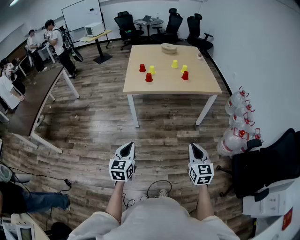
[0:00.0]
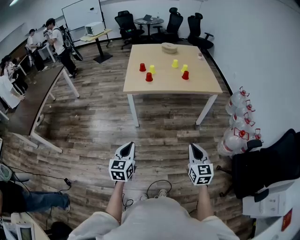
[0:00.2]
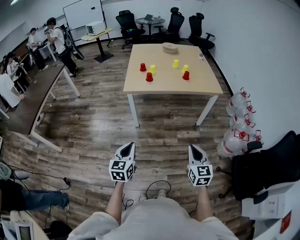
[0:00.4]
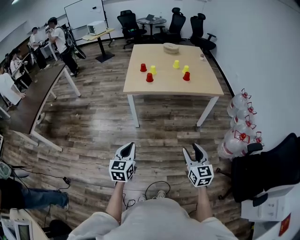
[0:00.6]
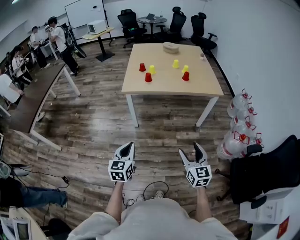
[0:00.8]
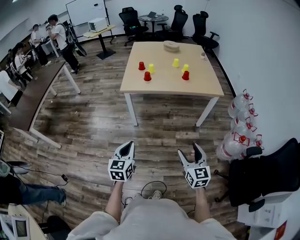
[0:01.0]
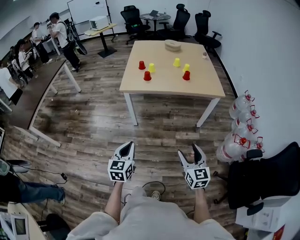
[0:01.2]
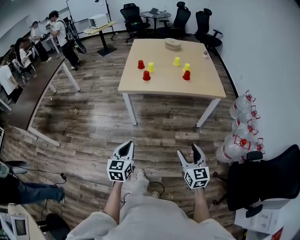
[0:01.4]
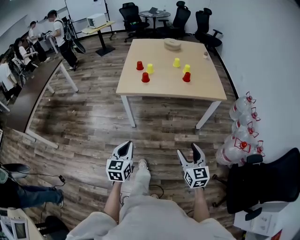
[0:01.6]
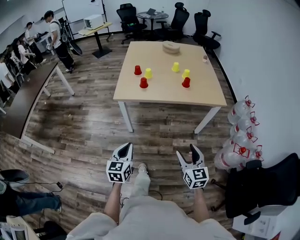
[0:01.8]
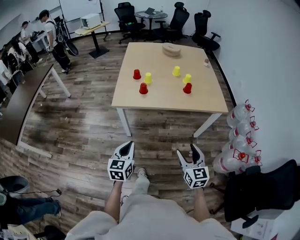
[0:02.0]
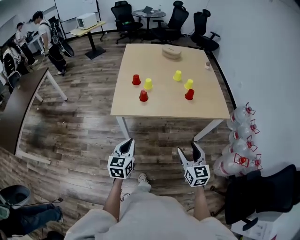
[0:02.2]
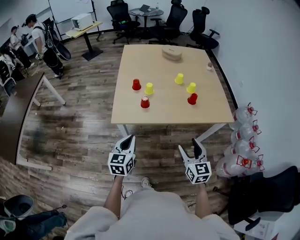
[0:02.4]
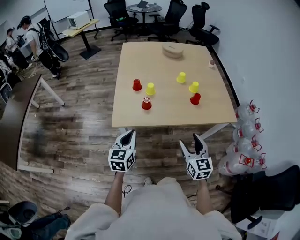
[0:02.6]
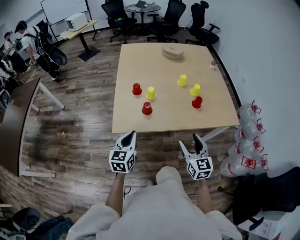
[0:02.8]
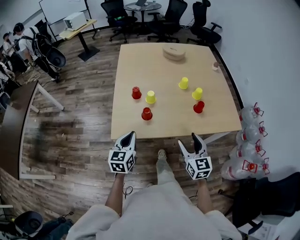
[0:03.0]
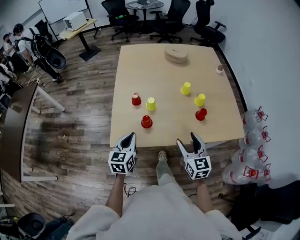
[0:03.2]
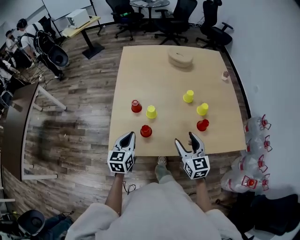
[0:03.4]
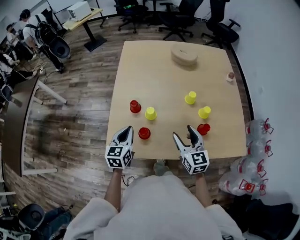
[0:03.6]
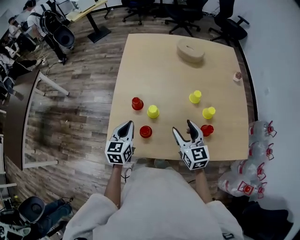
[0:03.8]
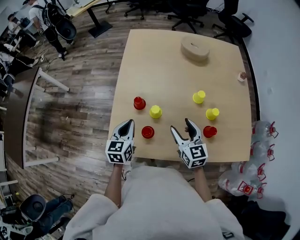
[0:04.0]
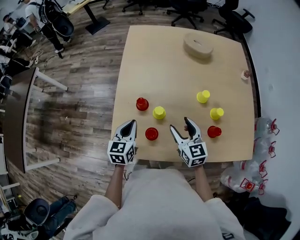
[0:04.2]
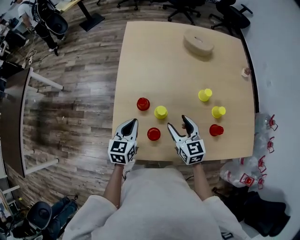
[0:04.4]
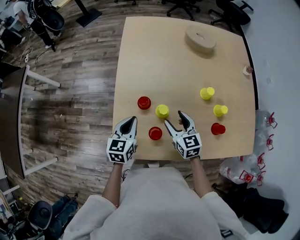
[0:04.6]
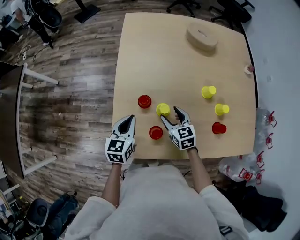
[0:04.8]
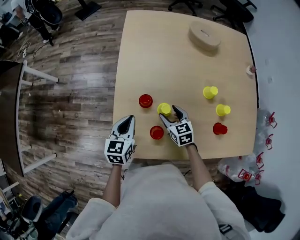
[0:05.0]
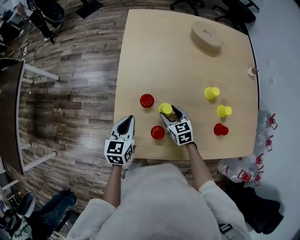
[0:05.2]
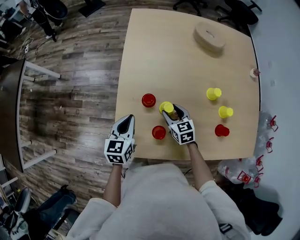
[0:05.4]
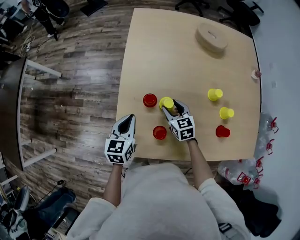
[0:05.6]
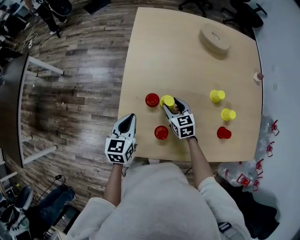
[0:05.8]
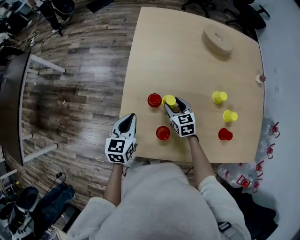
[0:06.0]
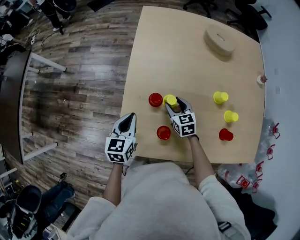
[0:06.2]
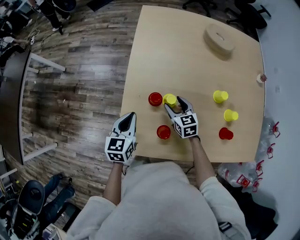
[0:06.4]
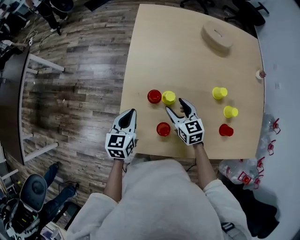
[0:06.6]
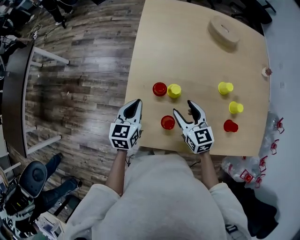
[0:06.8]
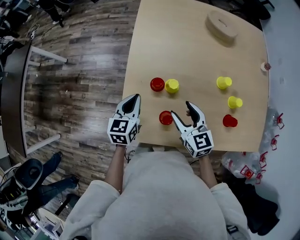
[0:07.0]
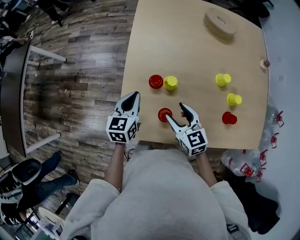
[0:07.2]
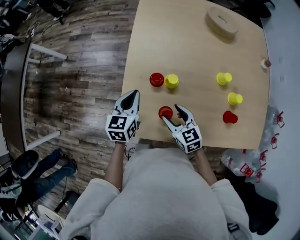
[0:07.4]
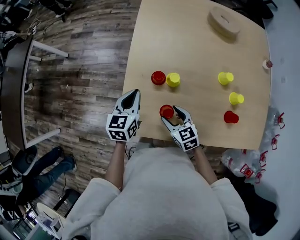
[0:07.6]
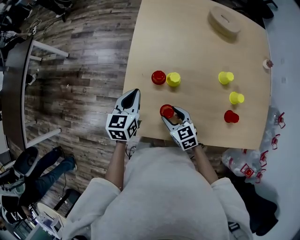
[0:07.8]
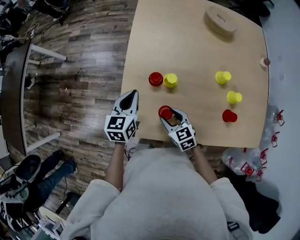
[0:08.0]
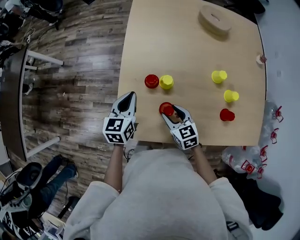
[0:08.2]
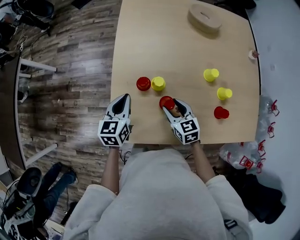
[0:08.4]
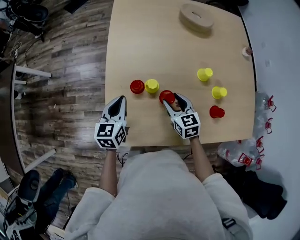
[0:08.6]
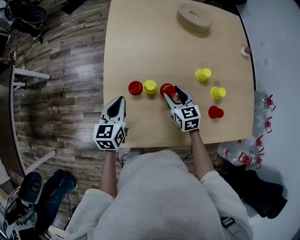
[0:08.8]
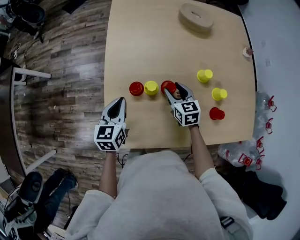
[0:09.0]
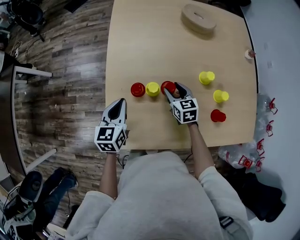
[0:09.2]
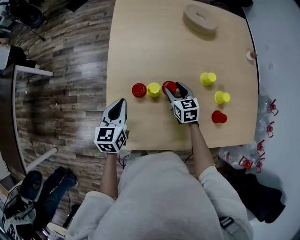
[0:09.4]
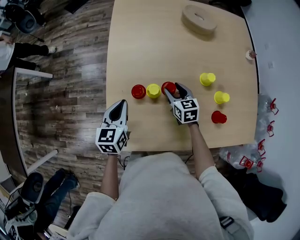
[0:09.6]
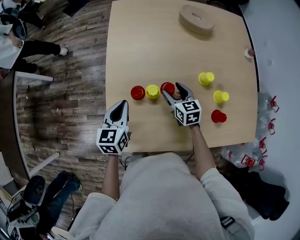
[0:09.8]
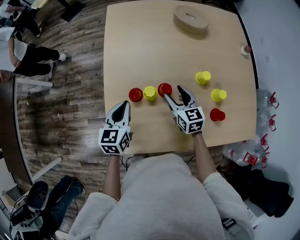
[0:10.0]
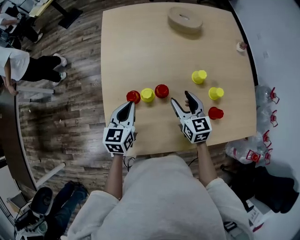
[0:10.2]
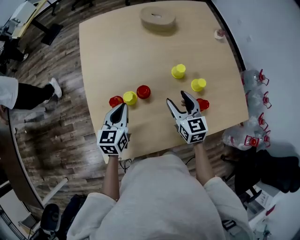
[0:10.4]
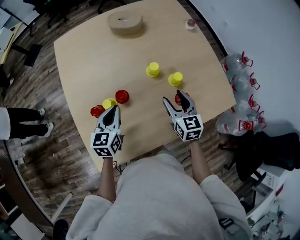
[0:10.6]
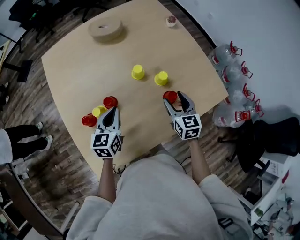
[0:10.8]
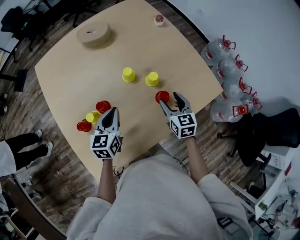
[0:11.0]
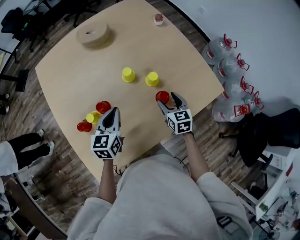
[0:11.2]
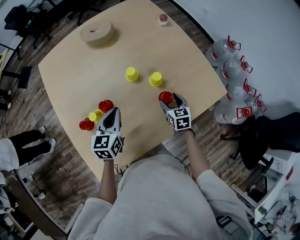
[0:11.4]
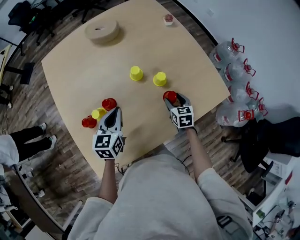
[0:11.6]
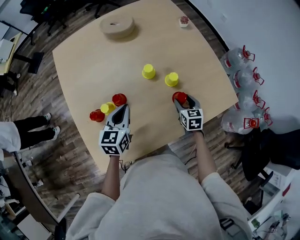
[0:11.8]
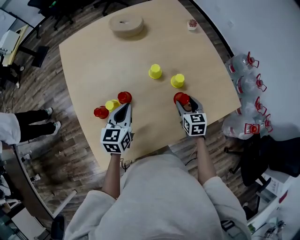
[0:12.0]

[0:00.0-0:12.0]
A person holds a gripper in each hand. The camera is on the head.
0:00.0 to 0:01.6: The left gripper travels forward and to the right by roughly 10 cm; the right gripper is displaced forward by some 10 cm, and opens up.
0:01.6 to 0:03.0: The two grippers travel together, forward, about 40 cm.
0:03.0 to 0:04.4: The two grippers go about 25 cm forward.
0:04.4 to 0:06.0: The right gripper travels downward, forward and to the left by about 15 cm; the left gripper goes approximately 5 cm to the left.
0:06.0 to 0:07.6: The right gripper moves backward, some 15 cm.
0:07.6 to 0:09.0: The right gripper is displaced forward and to the right by roughly 20 cm, and turns by some 20 degrees.
0:09.0 to 0:10.4: The right gripper is displaced to the right, upward and backward by roughly 15 cm. Meanwhile the left gripper goes roughly 10 cm to the right.
0:10.4 to 0:12.0: The left gripper goes some 10 cm to the right. Meanwhile the right gripper goes about 20 cm to the right and downward, and changes its angle by some 20 degrees.

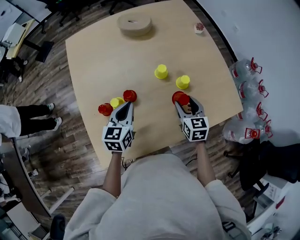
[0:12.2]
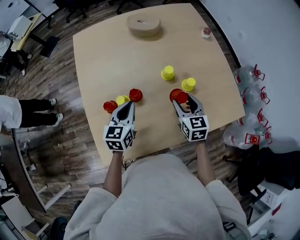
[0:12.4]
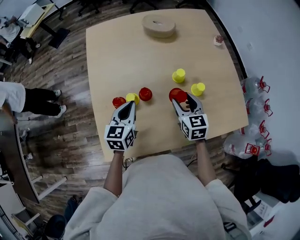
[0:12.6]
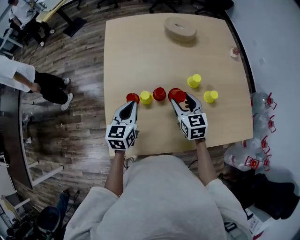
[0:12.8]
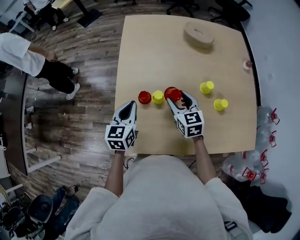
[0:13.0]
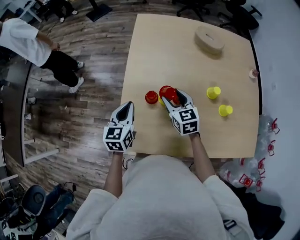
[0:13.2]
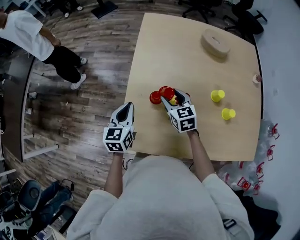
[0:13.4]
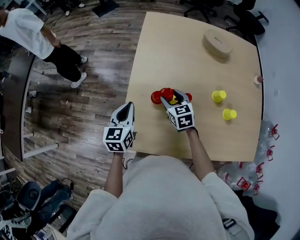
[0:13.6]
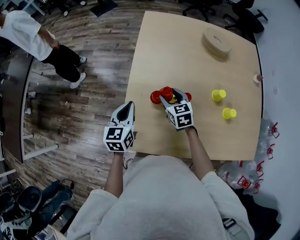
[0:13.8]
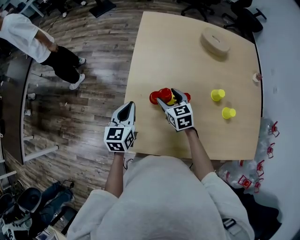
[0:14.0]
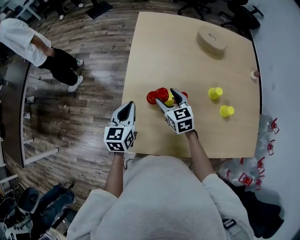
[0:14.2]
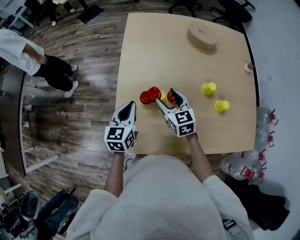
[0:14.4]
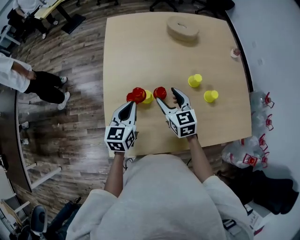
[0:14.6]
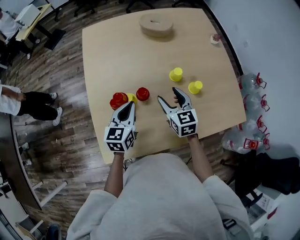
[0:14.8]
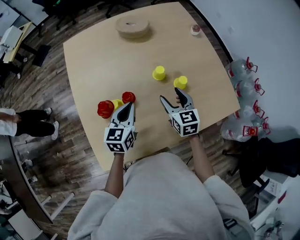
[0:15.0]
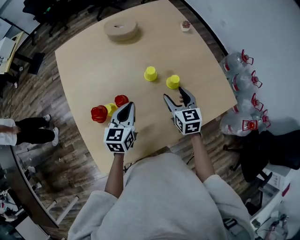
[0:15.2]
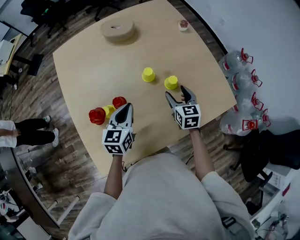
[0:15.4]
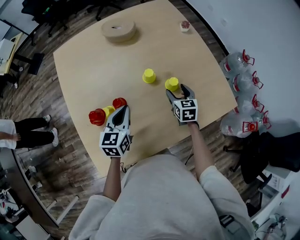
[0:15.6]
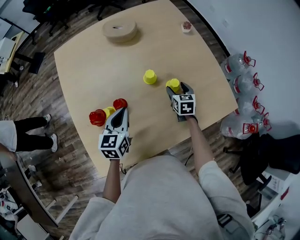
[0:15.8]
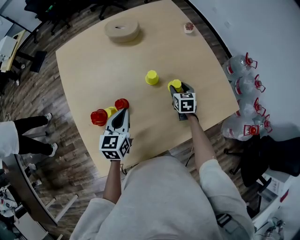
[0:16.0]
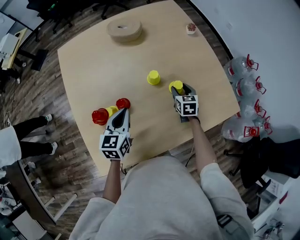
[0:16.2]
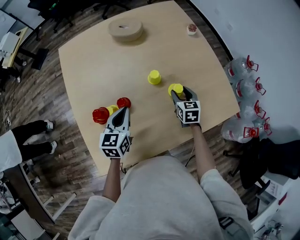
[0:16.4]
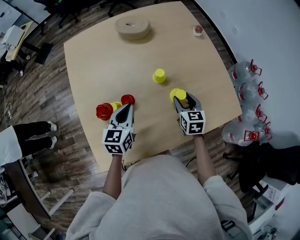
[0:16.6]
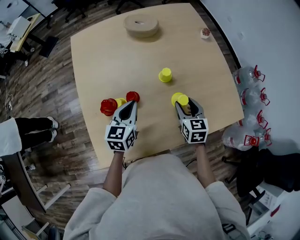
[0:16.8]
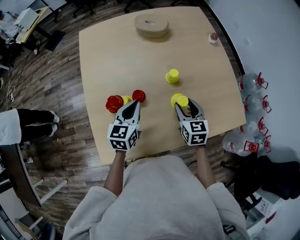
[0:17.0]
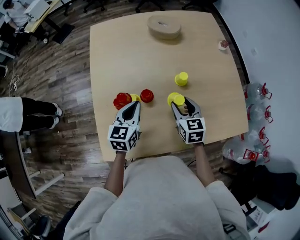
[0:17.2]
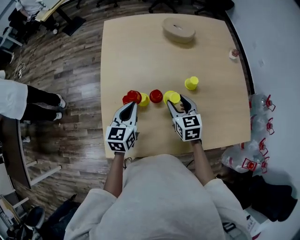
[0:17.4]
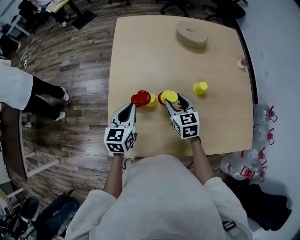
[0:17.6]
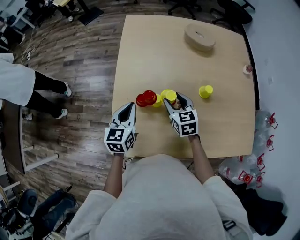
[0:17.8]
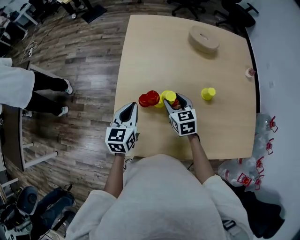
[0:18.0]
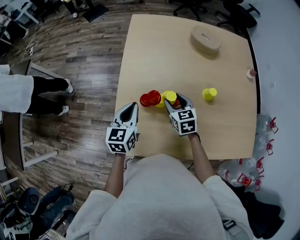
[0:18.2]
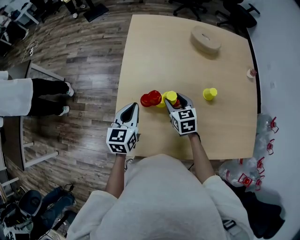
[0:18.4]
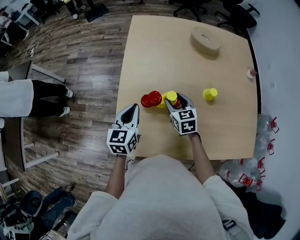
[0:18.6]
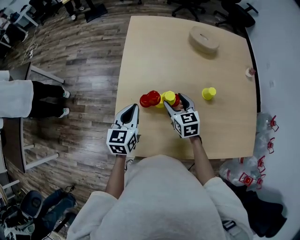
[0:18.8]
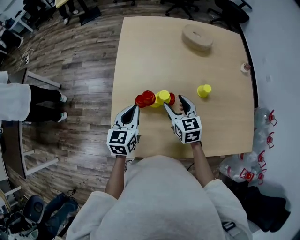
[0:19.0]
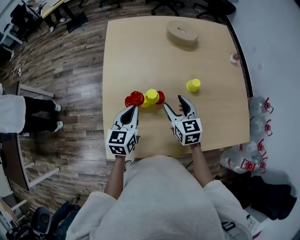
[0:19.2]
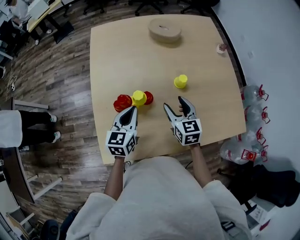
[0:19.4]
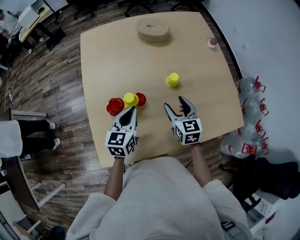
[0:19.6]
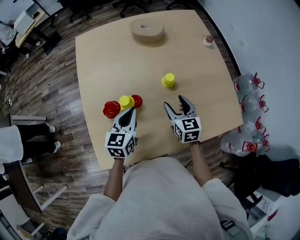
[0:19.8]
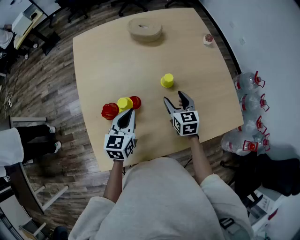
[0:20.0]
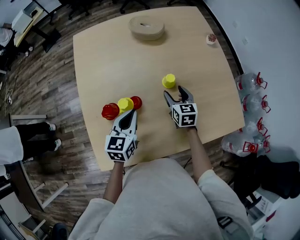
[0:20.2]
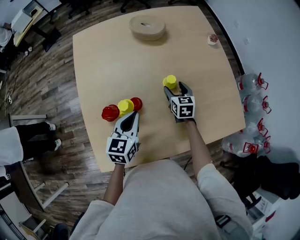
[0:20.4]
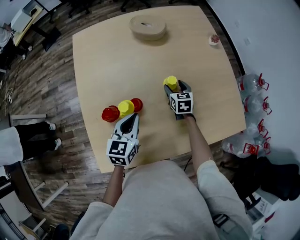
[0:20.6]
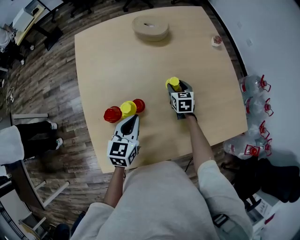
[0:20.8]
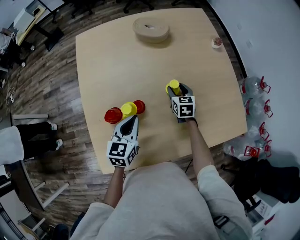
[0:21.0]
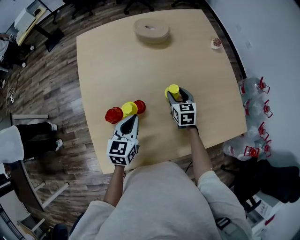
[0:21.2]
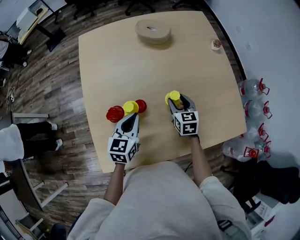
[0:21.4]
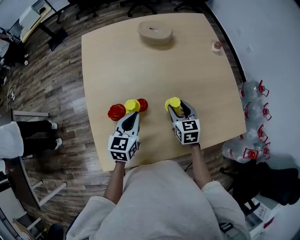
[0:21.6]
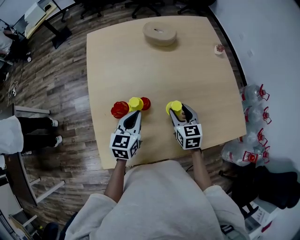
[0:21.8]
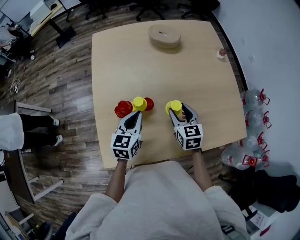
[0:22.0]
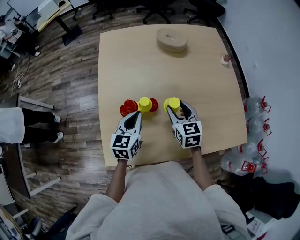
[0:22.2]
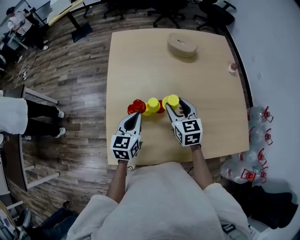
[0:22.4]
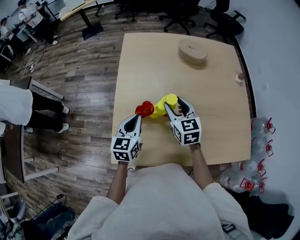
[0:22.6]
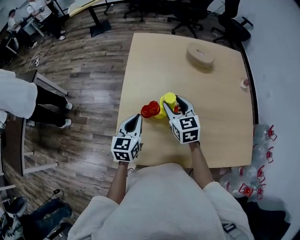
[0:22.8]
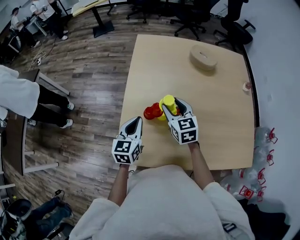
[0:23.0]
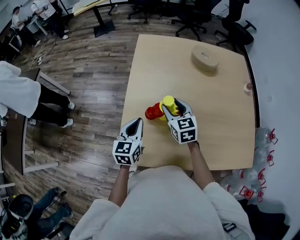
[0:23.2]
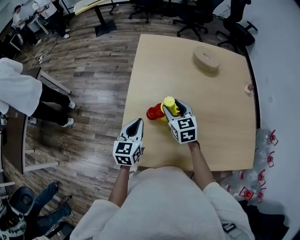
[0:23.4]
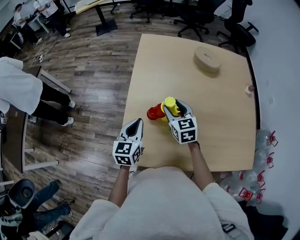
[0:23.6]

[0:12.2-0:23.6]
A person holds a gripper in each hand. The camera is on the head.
0:12.2 to 0:13.6: The right gripper changes place by approximately 35 cm, and swivels some 40 degrees. The left gripper changes place by roughly 30 cm, and changes its angle by about 30 degrees.
0:13.6 to 0:15.0: The left gripper ends up some 25 cm from where it was, and swivels about 30 degrees. Meanwhile the right gripper moves approximately 30 cm, and turns by approximately 40 degrees.
0:15.0 to 0:16.4: The right gripper is displaced to the right, downward and forward by roughly 15 cm.
0:16.4 to 0:17.8: The right gripper moves roughly 30 cm, and turns by roughly 40 degrees, while the left gripper changes place by some 20 cm, and turns by approximately 20 degrees.
0:17.8 to 0:19.4: The right gripper heads to the right and backward, covering some 10 cm. The left gripper goes roughly 10 cm to the right.
0:19.4 to 0:20.8: The right gripper shifts about 20 cm forward, downward and to the right, while the left gripper heads to the right, covering roughly 5 cm.
0:20.8 to 0:22.2: The right gripper heads upward, backward and to the left, covering some 20 cm, while the left gripper heads to the left, covering approximately 5 cm.
0:22.2 to 0:23.6: Both grippers travel together to the left, approximately 15 cm.
